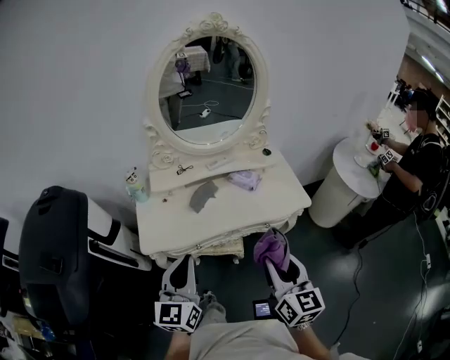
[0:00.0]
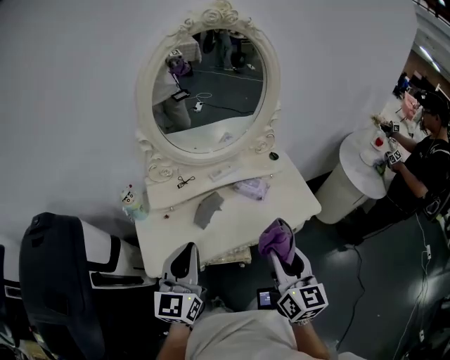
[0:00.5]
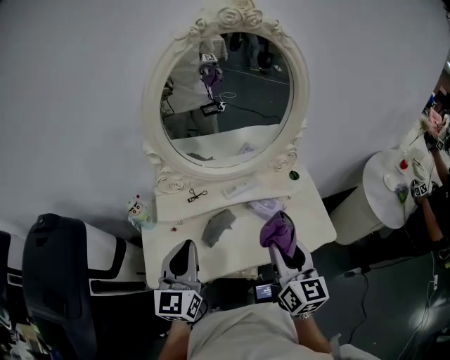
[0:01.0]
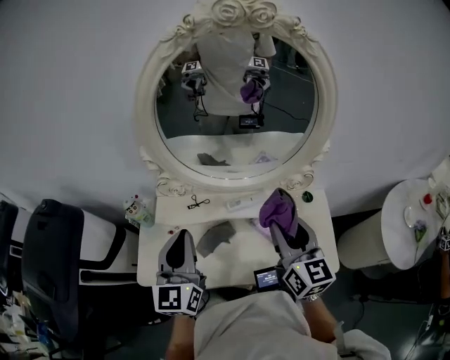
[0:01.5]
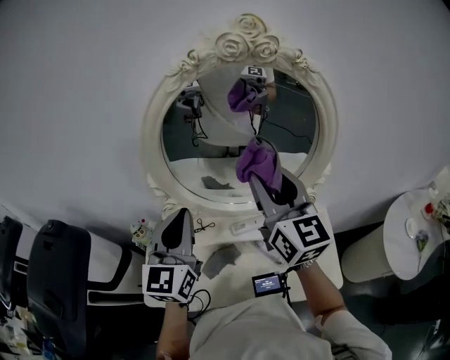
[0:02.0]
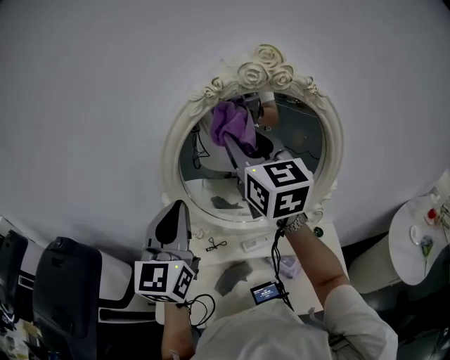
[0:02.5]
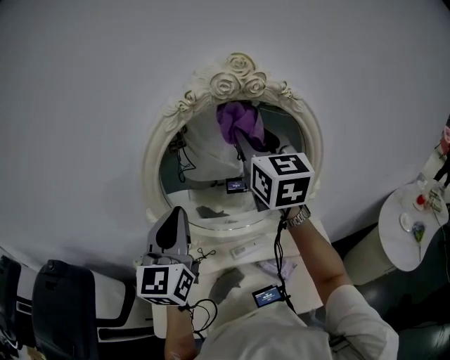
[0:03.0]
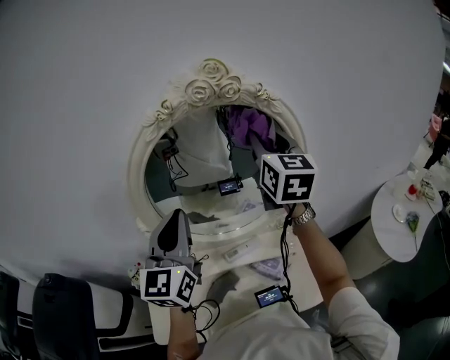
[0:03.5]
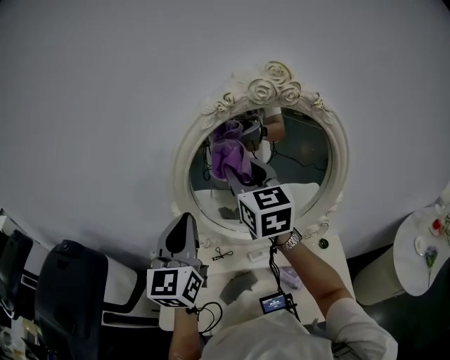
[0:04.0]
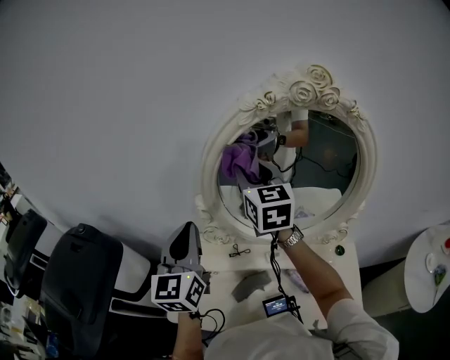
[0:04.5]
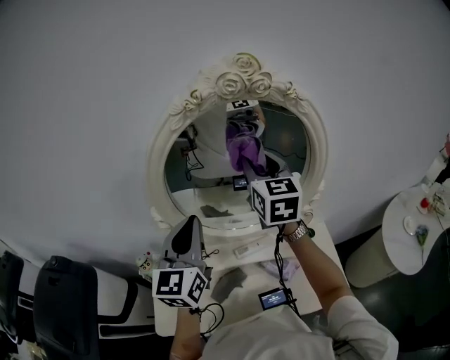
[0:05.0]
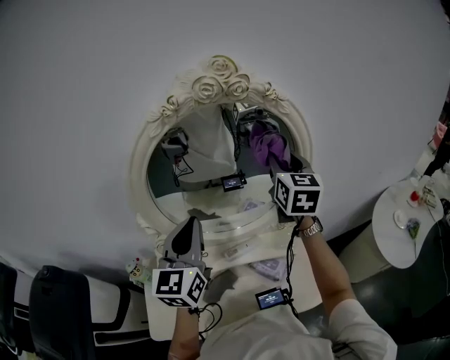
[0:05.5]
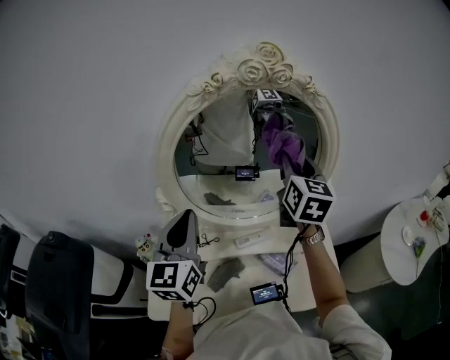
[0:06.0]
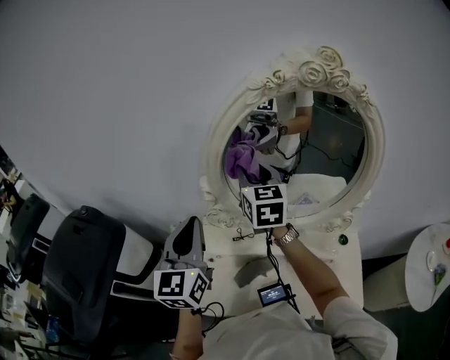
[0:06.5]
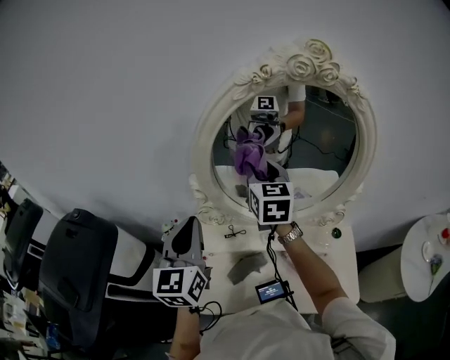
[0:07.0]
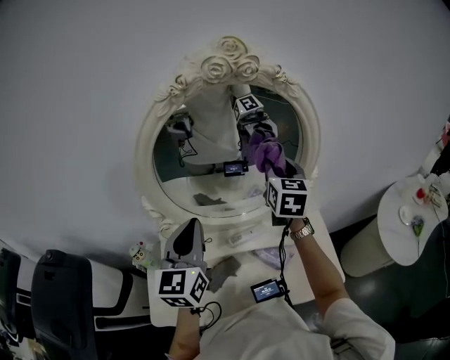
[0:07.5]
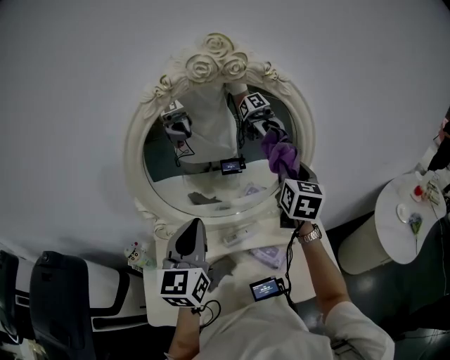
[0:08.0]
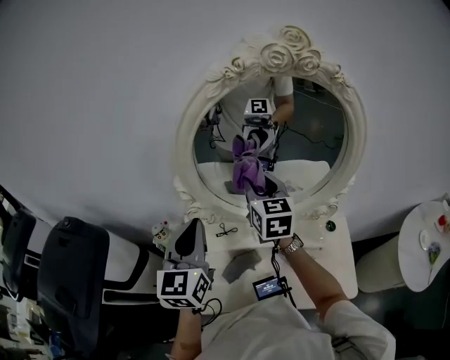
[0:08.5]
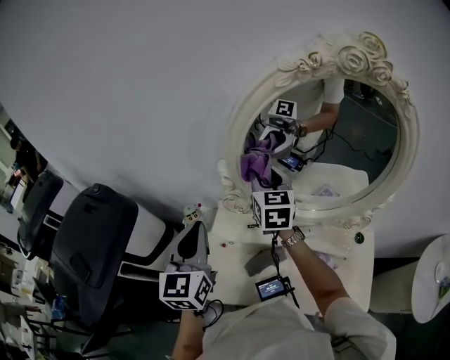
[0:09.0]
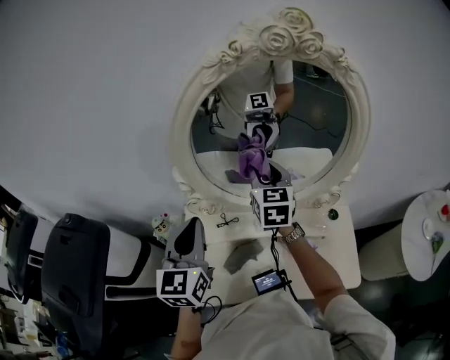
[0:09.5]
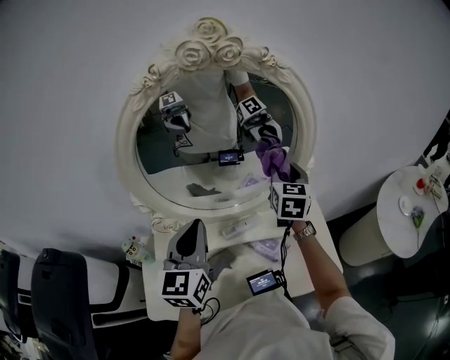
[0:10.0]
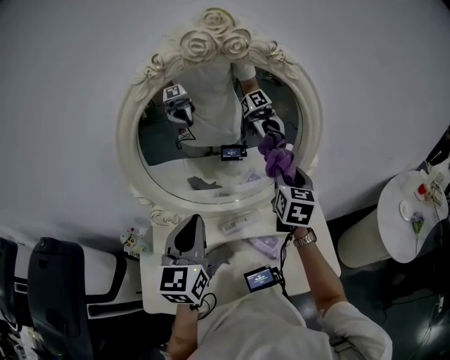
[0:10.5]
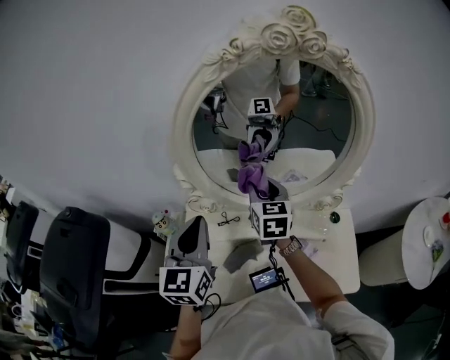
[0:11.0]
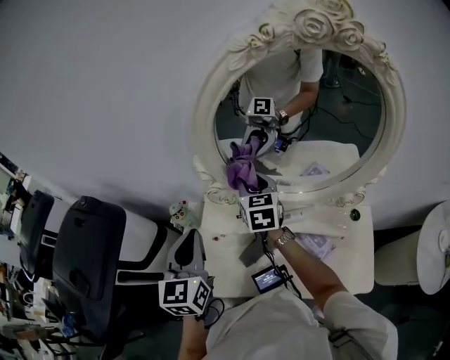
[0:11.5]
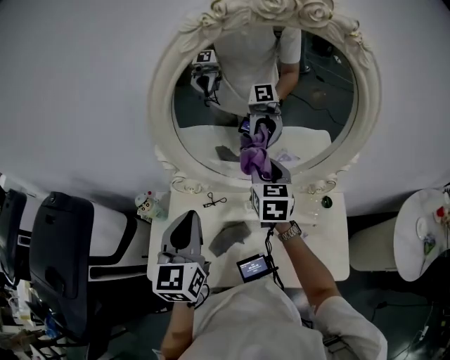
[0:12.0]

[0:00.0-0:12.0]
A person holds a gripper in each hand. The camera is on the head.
0:00.0 to 0:02.0: Both grippers are carried forward, some 50 cm. The right gripper changes its angle by some 30 degrees.
0:02.0 to 0:04.0: The left gripper heads upward and to the left, covering about 10 cm; the right gripper moves left and right over some 20 cm, changing direction 2 times.
0:04.0 to 0:06.0: The left gripper goes left and right, approximately 15 cm each way, reversing 2 times; the right gripper swings left and right, some 30 cm each way, with 2 reversals, and turns by about 30 degrees.
0:06.0 to 0:08.0: The left gripper shifts by roughly 10 cm.
0:08.0 to 0:10.0: The right gripper shifts roughly 5 cm downward.
0:10.0 to 0:12.0: The right gripper changes its angle by approximately 20 degrees.

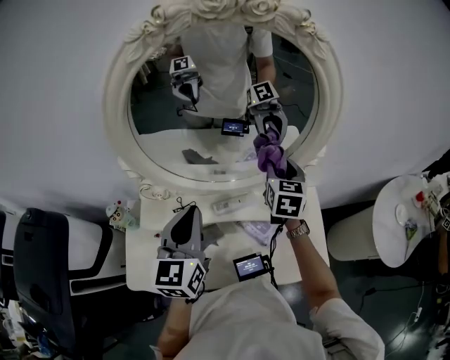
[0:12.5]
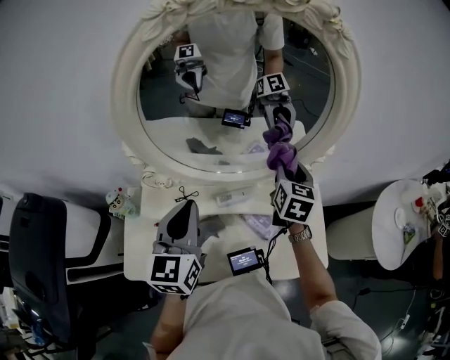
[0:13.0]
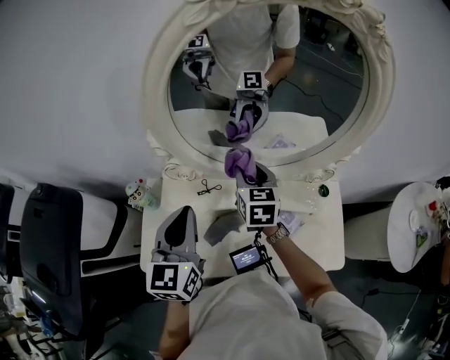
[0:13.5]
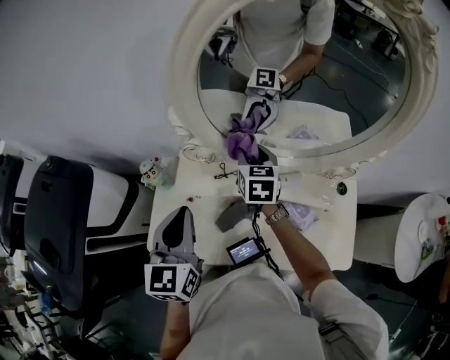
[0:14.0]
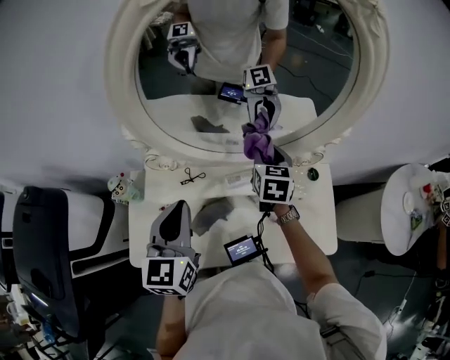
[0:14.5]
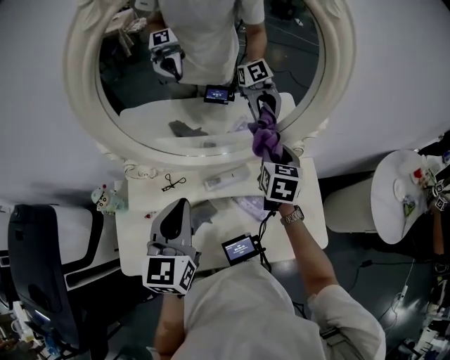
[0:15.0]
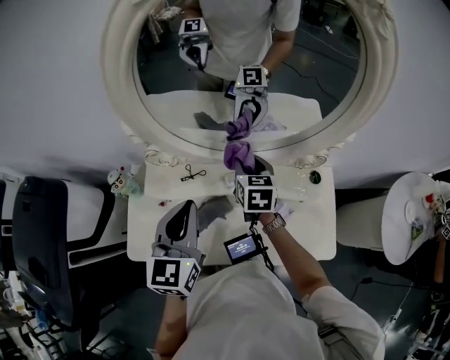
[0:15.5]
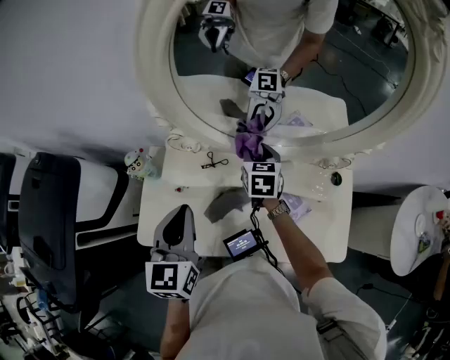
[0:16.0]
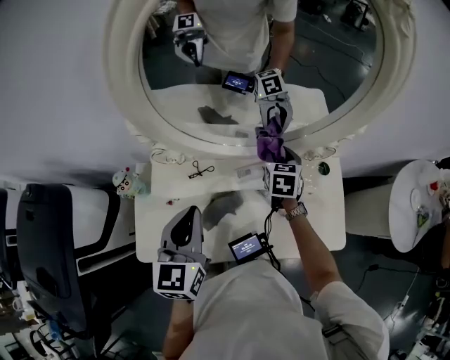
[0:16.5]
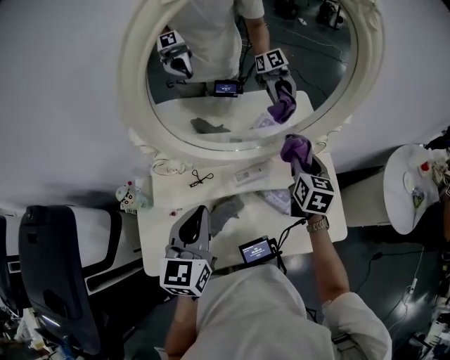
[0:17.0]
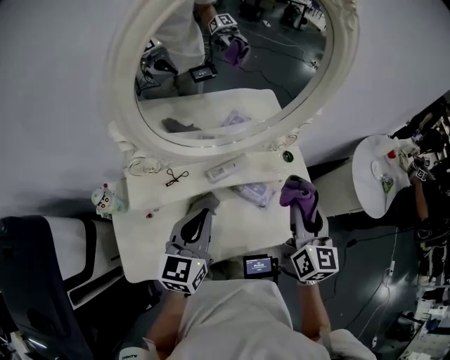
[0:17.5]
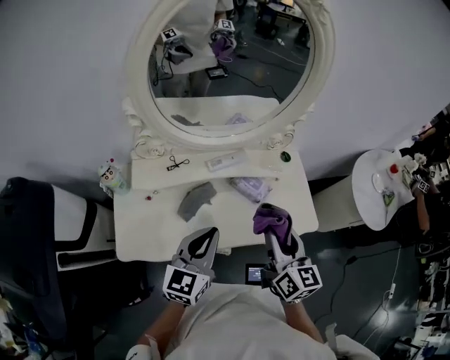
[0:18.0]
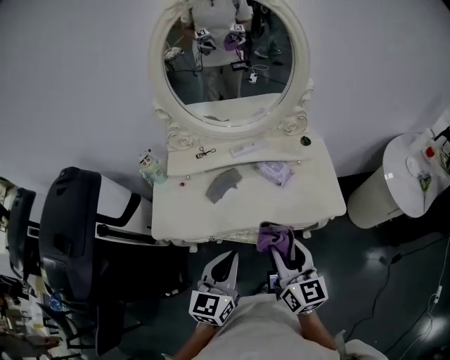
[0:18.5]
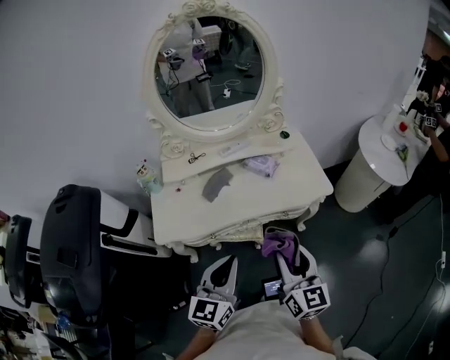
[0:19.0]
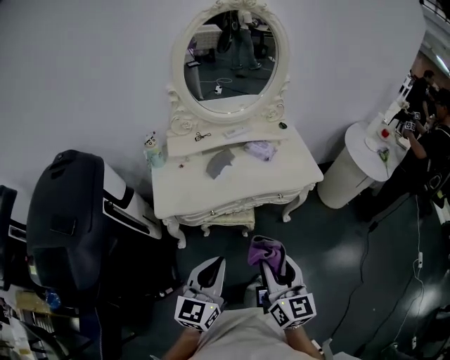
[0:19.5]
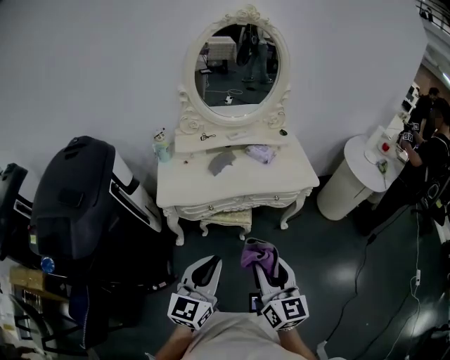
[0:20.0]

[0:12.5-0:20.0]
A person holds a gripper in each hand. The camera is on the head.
0:12.5 to 0:14.5: The right gripper travels downward by some 10 cm, and reaches approximately 25 cm to the left, then returns. Meanwhile the left gripper moves to the left, approximately 5 cm.
0:14.5 to 0:16.5: The right gripper goes left and right, approximately 20 cm each way, reversing 2 times. The left gripper goes to the right and returns, about 5 cm each way.
0:16.5 to 0:18.0: The right gripper is displaced backward by some 35 cm, and swivels some 30 degrees; the left gripper moves backward and to the right, approximately 20 cm, and rotates roughly 30 degrees.
0:18.0 to 0:20.0: The two grippers travel together, backward, about 50 cm.

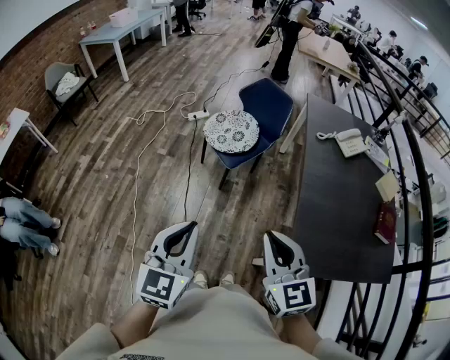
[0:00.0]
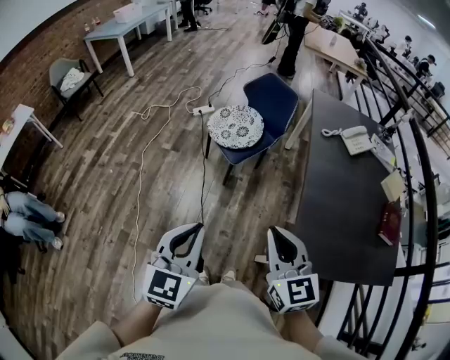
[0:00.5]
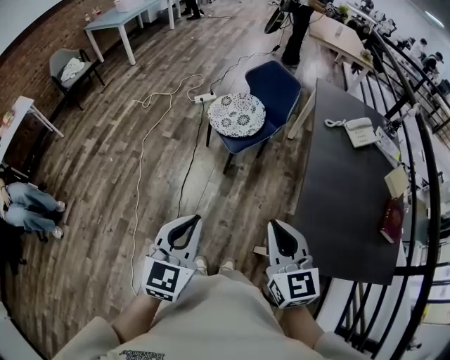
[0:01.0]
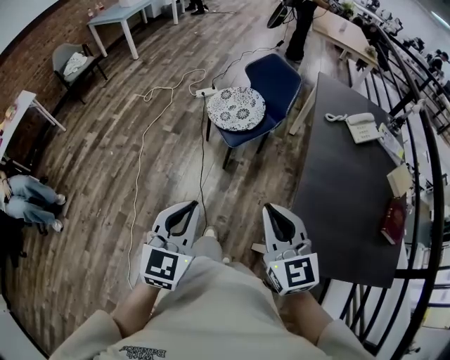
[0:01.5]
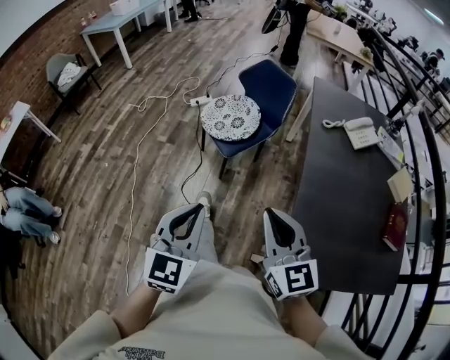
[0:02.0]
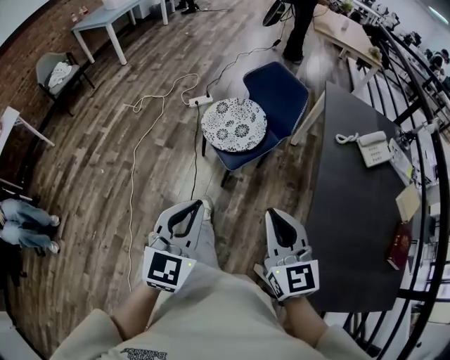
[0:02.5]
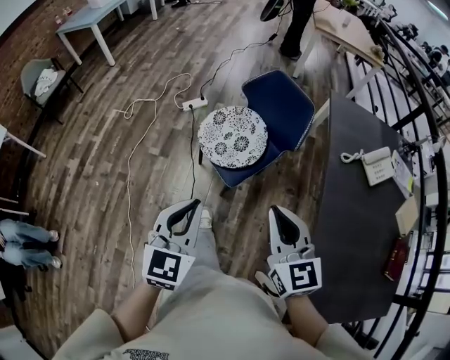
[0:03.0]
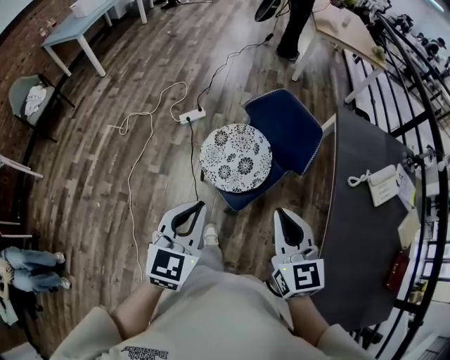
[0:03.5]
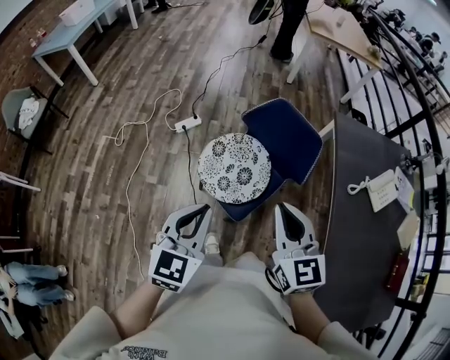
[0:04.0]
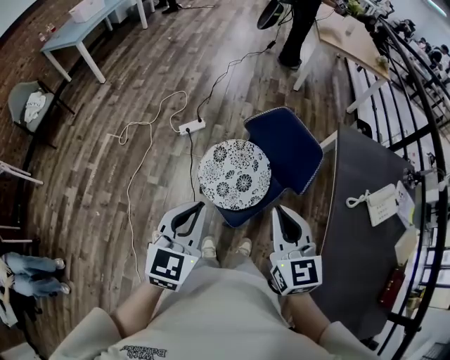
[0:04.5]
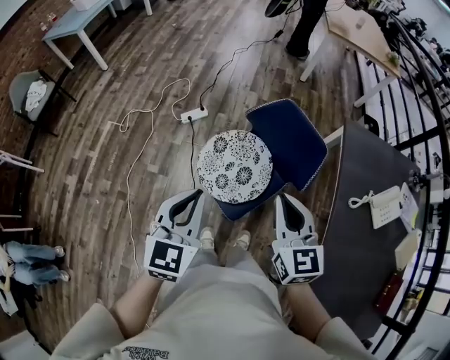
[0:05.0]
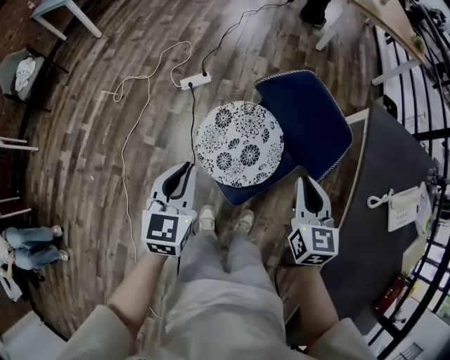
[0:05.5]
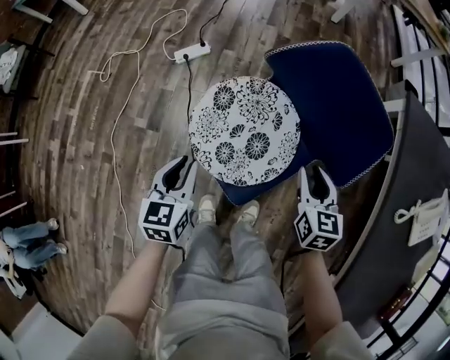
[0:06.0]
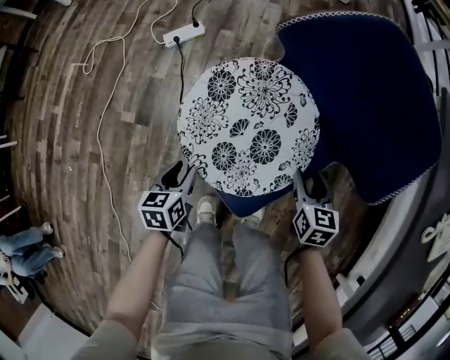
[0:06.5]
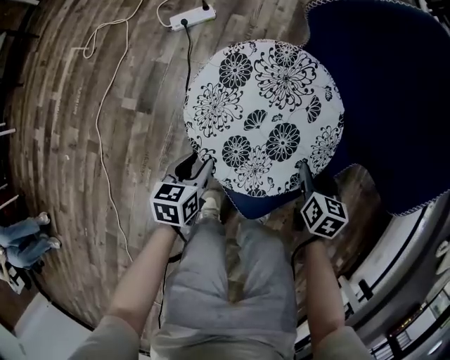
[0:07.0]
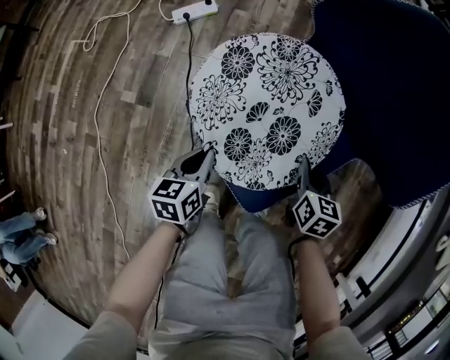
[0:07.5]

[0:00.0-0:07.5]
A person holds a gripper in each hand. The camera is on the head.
0:00.0 to 0:02.0: The left gripper goes about 15 cm to the right, forward and downward, while the right gripper shifts some 10 cm forward and to the right.
0:02.0 to 0:04.0: Both grippers are carried forward, some 50 cm.
0:04.0 to 0:05.5: The left gripper moves downward and forward, roughly 20 cm, and turns by roughly 20 degrees; the right gripper heads downward, forward and to the right, covering some 25 cm.
0:05.5 to 0:07.5: The grippers both shift downward by roughly 40 cm. The left gripper turns by roughly 30 degrees, and opens, then closes once more. The right gripper swivels about 20 degrees, and opens, then closes once more.
